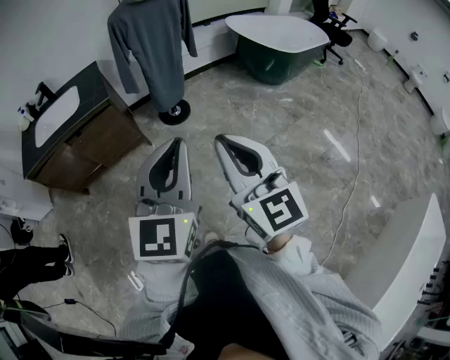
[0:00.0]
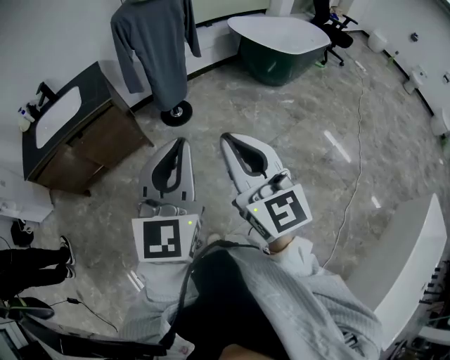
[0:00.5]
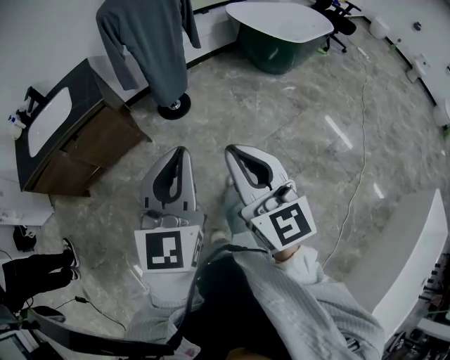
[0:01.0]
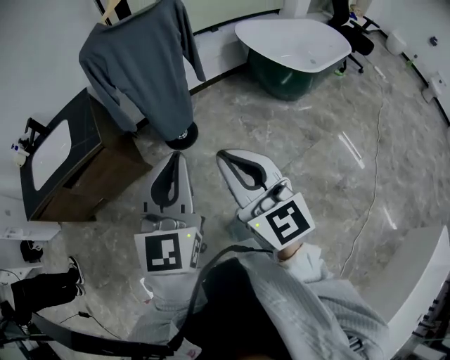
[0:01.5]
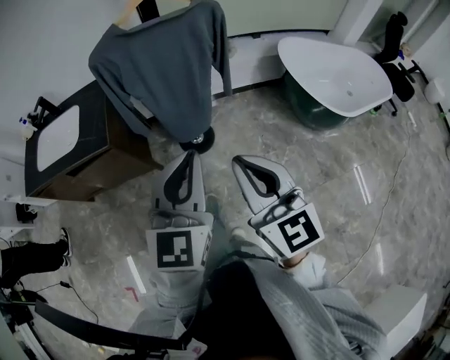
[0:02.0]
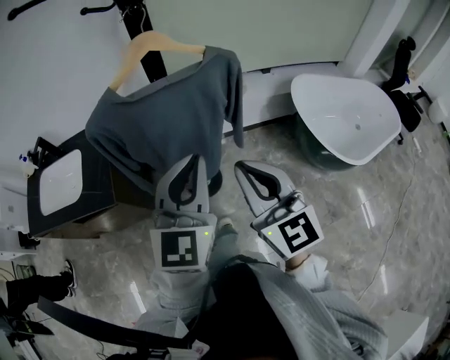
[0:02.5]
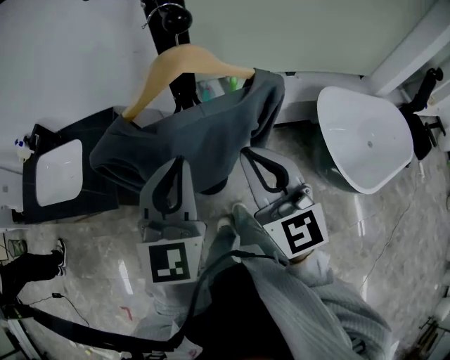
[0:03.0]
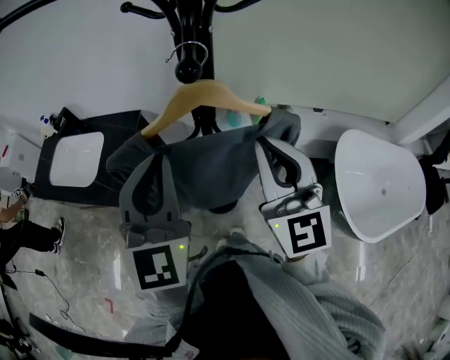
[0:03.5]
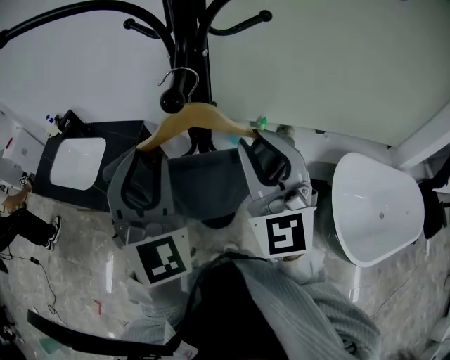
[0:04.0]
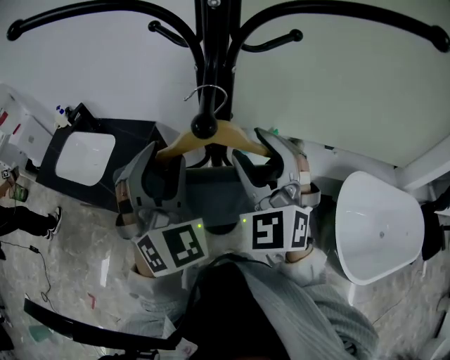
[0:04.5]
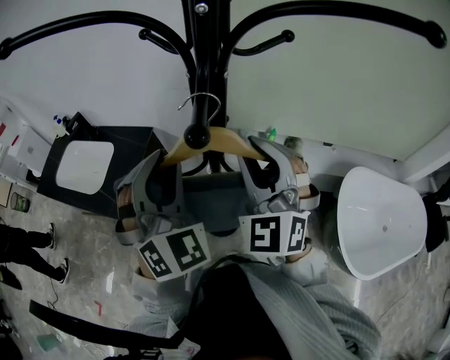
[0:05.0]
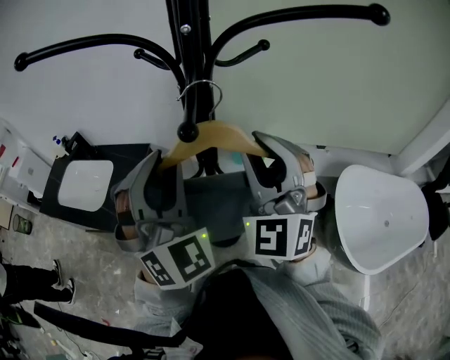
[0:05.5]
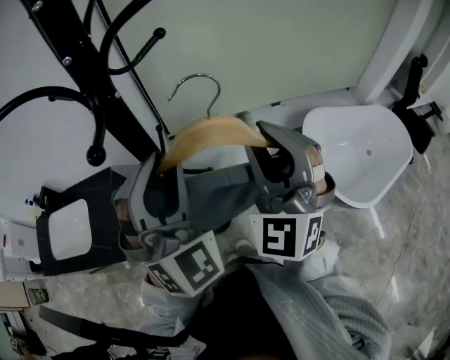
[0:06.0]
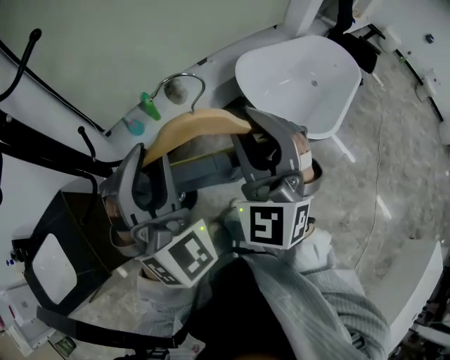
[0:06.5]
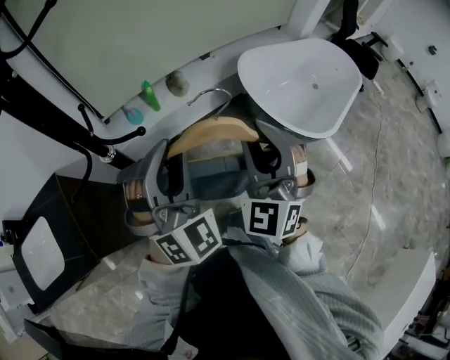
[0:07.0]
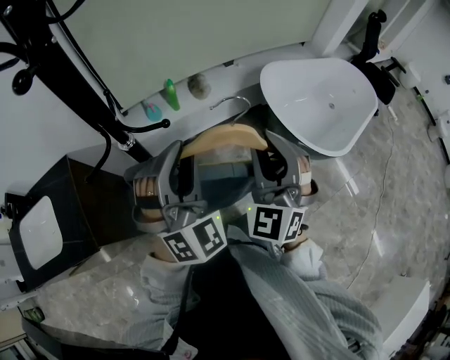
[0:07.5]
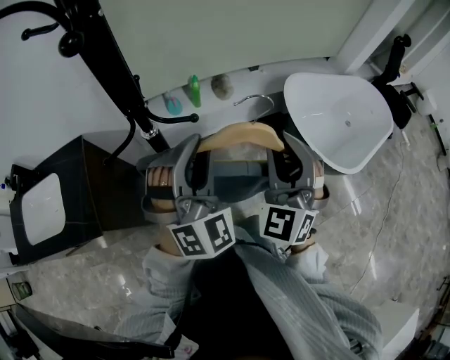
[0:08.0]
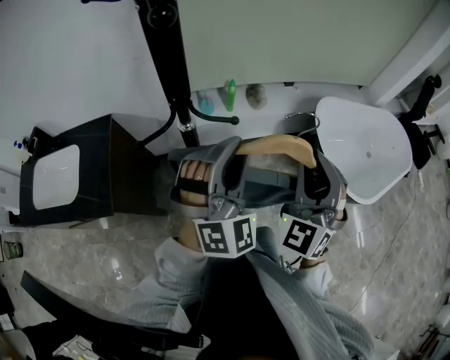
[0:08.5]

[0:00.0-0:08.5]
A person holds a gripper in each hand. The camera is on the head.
0:00.0 to 0:02.0: The two grippers travel together, forward, about 50 cm.
0:02.0 to 0:04.0: The pair of grippers is taken some 50 cm. The right gripper turns by approximately 30 degrees. The left gripper swivels roughly 50 degrees, and opens up.
0:04.0 to 0:06.5: The right gripper ends up about 20 cm from where it was, swivels roughly 50 degrees, and opens, then closes again, while the left gripper changes place by some 20 cm, and changes its angle by roughly 40 degrees.
0:06.5 to 0:08.5: Both grippers move downward, roughly 5 cm.

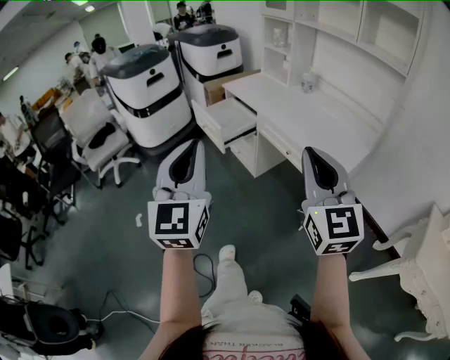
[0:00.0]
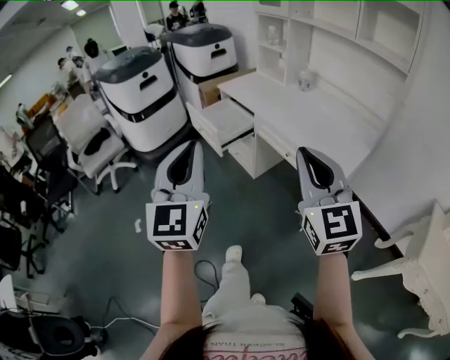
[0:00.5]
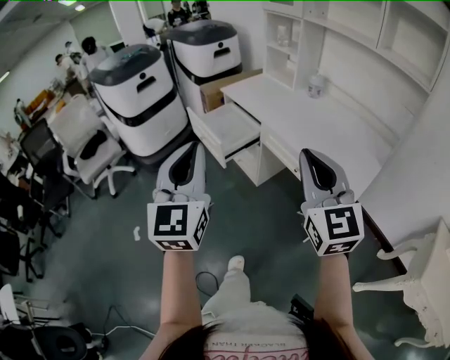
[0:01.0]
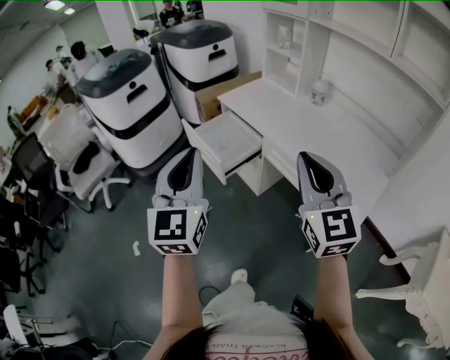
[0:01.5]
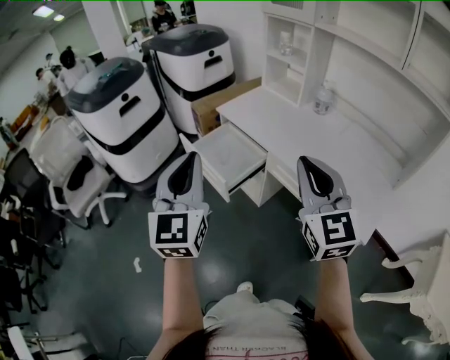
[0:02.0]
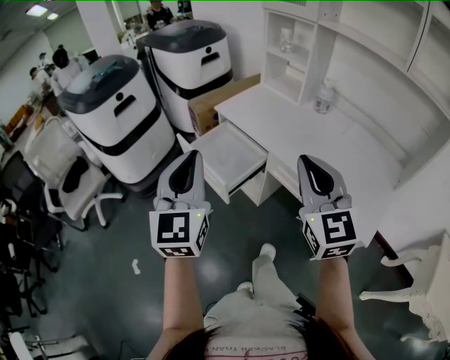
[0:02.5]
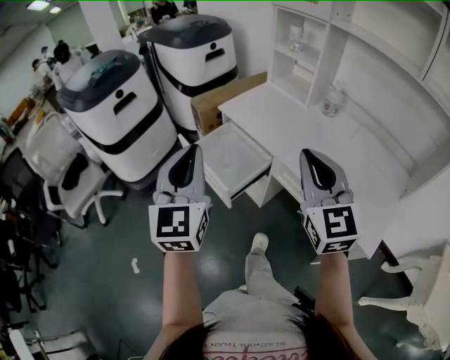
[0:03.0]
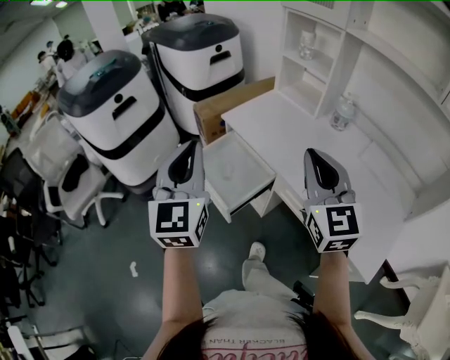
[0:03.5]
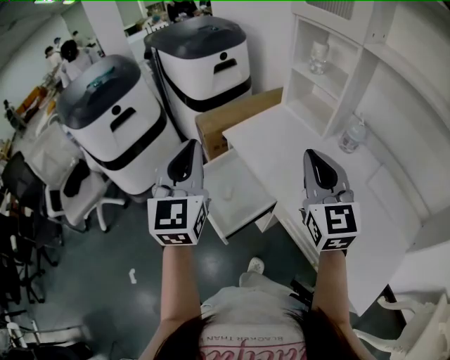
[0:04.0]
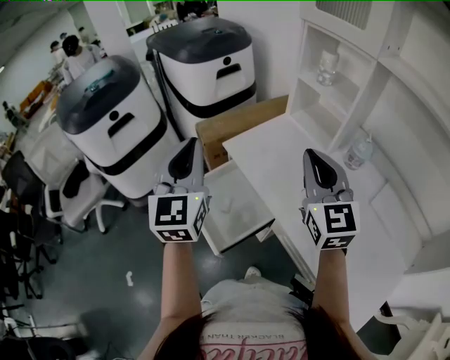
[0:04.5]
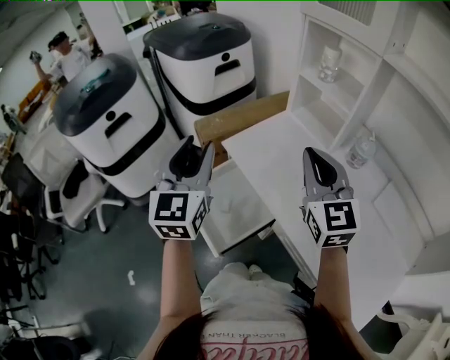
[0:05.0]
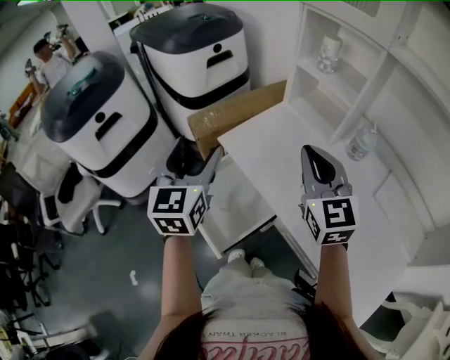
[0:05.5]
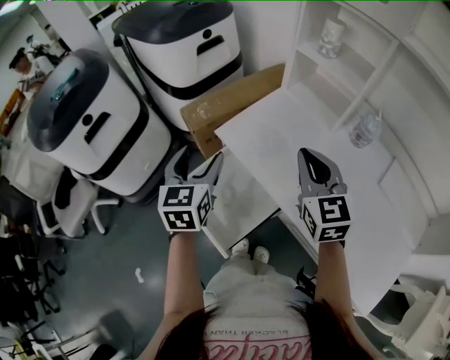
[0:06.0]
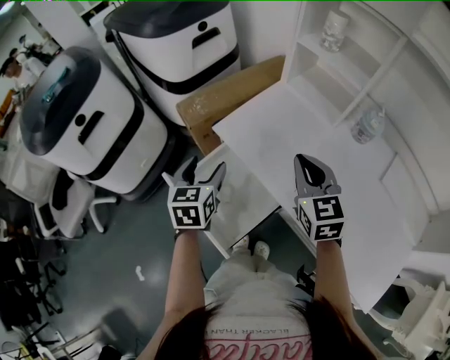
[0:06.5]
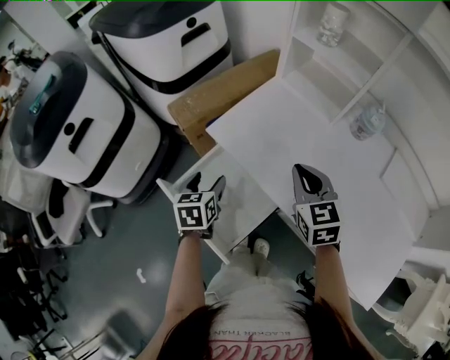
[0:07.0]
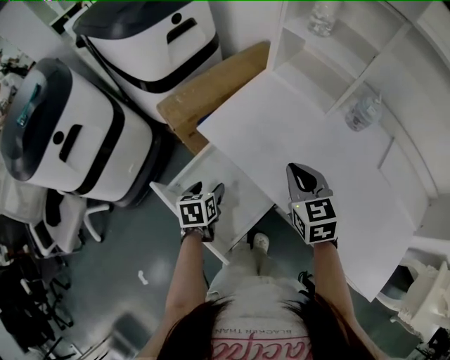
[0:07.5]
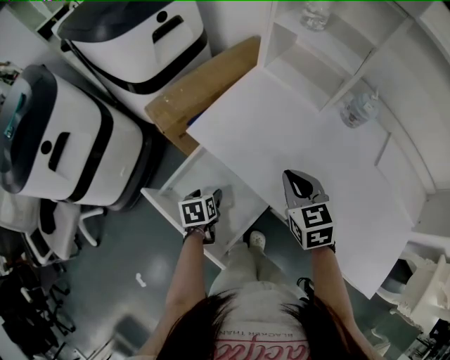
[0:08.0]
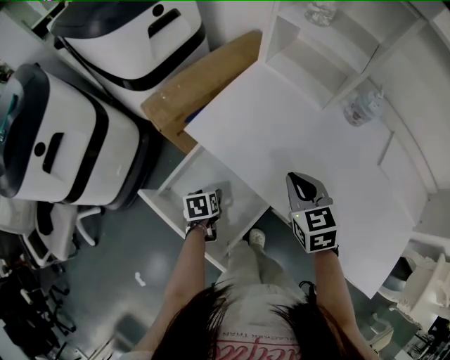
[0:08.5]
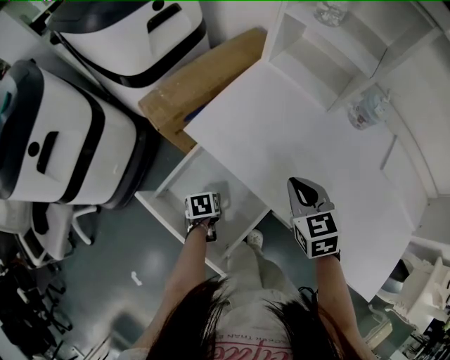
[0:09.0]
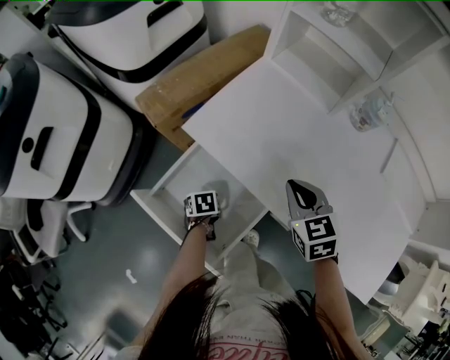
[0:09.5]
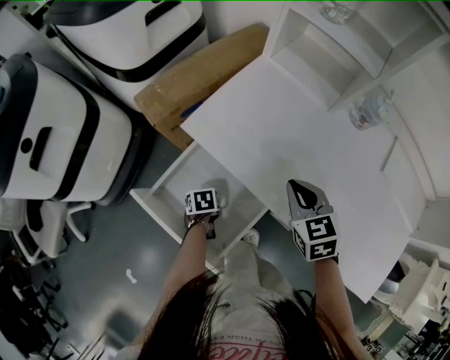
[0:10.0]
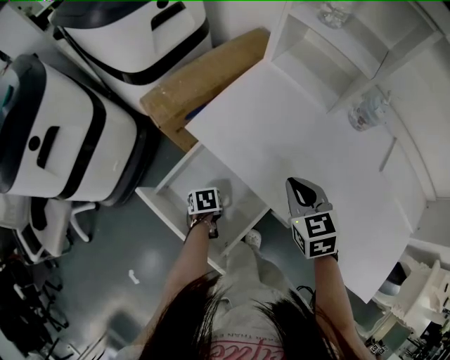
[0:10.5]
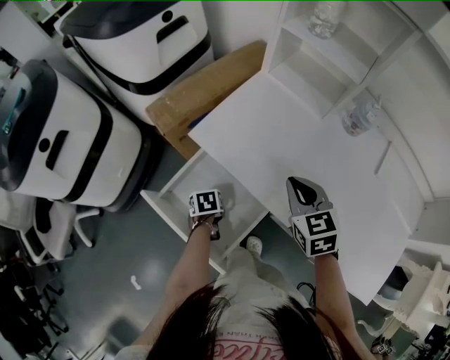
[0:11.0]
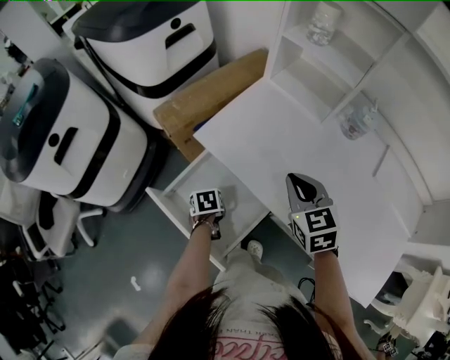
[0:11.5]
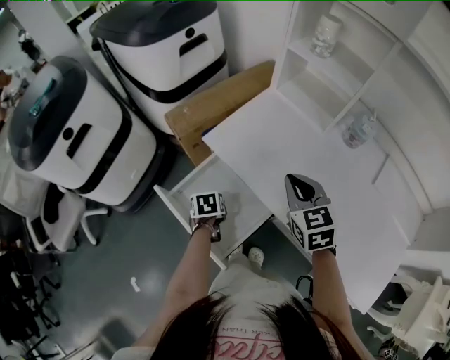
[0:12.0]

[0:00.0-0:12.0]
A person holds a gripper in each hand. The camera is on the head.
0:00.0 to 0:02.0: The grippers both shift forward by roughly 35 cm.
0:02.0 to 0:04.0: Both grippers move forward, about 30 cm.
0:04.0 to 0:06.0: The two grippers go some 20 cm forward and downward. The left gripper rotates about 30 degrees, and opens its fingers.
0:06.0 to 0:08.0: The left gripper travels downward by some 30 cm, and tilts its fingers approximately 40 degrees downward, while the right gripper travels downward by approximately 15 cm, and swivels some 20 degrees.
0:08.0 to 0:10.0: The left gripper shifts roughly 10 cm downward, and closes its fingers.
0:10.0 to 0:12.0: The two grippers go approximately 10 cm upward.

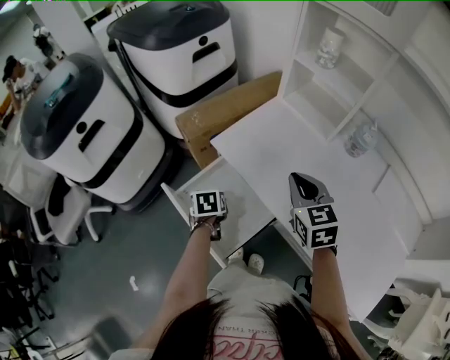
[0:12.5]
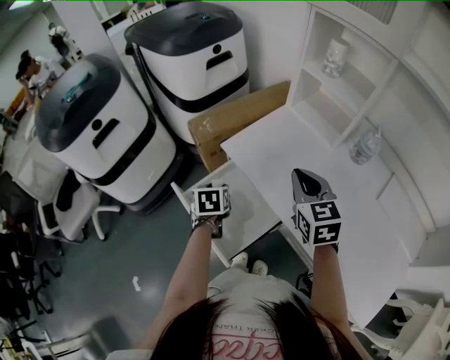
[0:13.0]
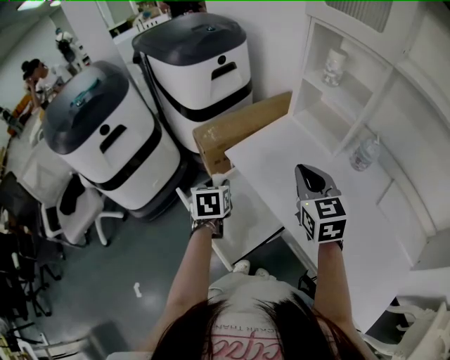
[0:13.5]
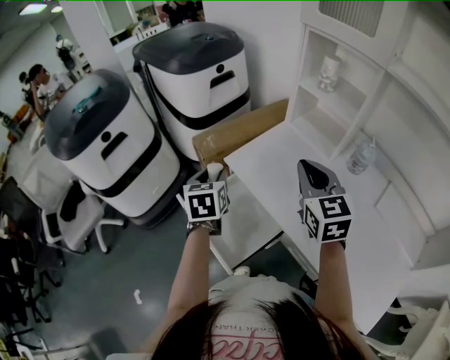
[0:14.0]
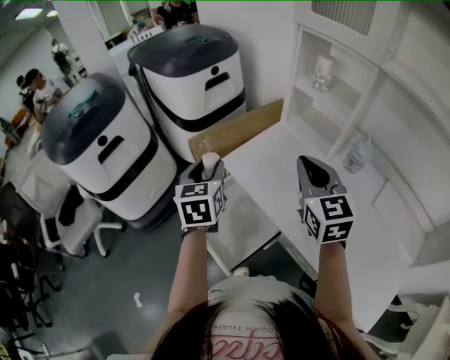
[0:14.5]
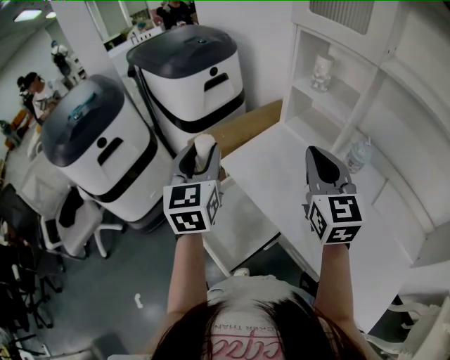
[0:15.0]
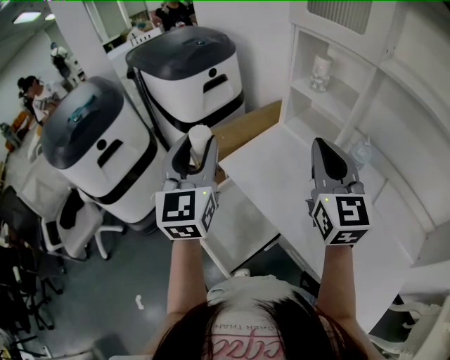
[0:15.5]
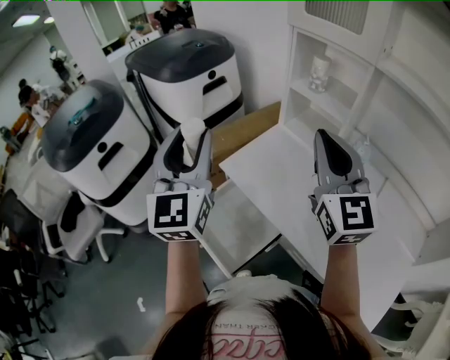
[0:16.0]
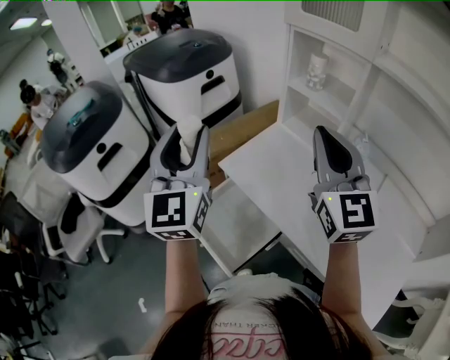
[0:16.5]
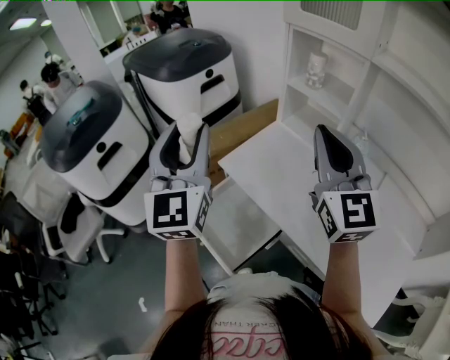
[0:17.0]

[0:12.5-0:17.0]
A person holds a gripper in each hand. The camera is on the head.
0:12.5 to 0:14.5: The right gripper goes about 15 cm upward. Meanwhile the left gripper travels upward by roughly 25 cm, and angles its fingers upward, by roughly 40 degrees.
0:14.5 to 0:17.0: The left gripper shifts about 20 cm upward, and angles its fingers upward, by about 40 degrees, while the right gripper goes approximately 10 cm upward, and turns by some 20 degrees.

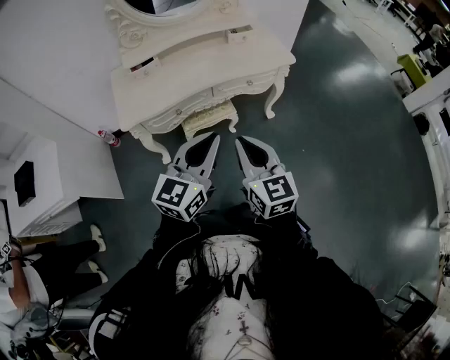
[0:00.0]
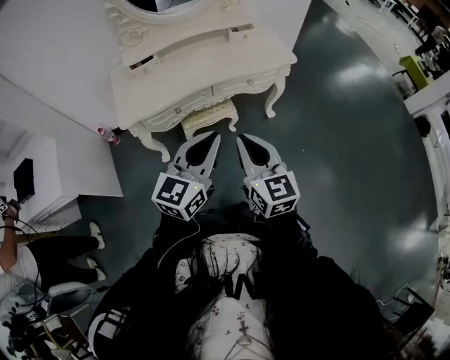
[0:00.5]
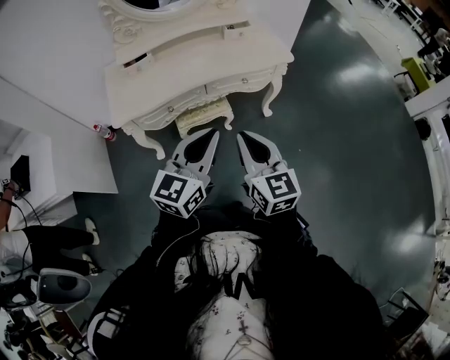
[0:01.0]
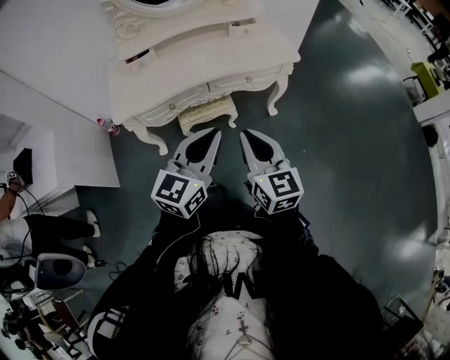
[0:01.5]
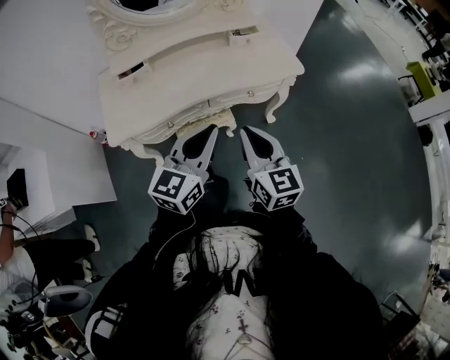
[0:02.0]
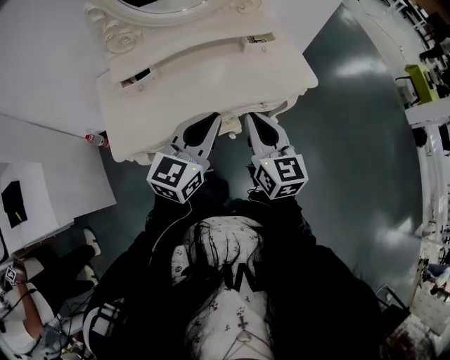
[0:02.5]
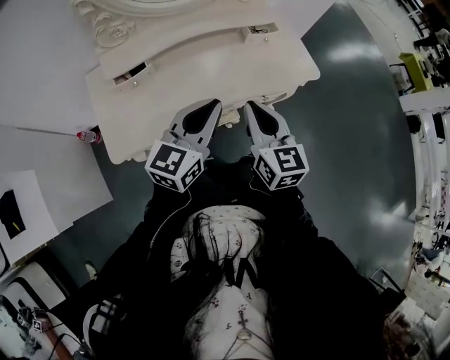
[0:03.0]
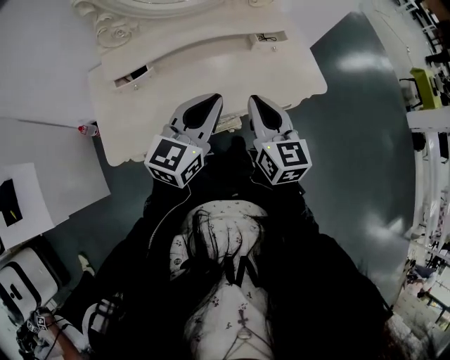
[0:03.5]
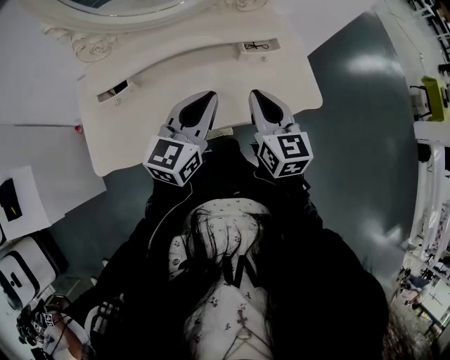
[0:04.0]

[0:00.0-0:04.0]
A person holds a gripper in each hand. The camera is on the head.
0:00.0 to 0:02.0: Both grippers travel together forward, about 15 cm.
0:02.0 to 0:04.0: Both grippers move forward, approximately 30 cm.
